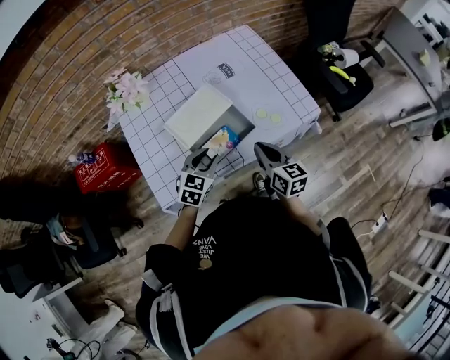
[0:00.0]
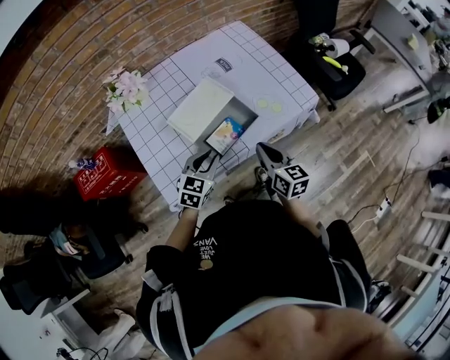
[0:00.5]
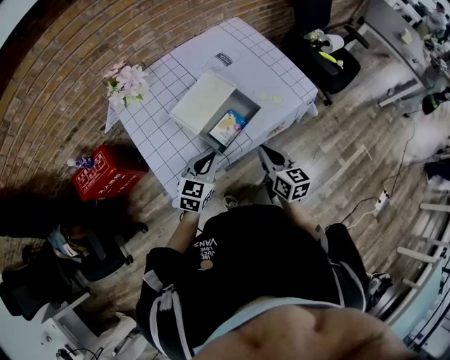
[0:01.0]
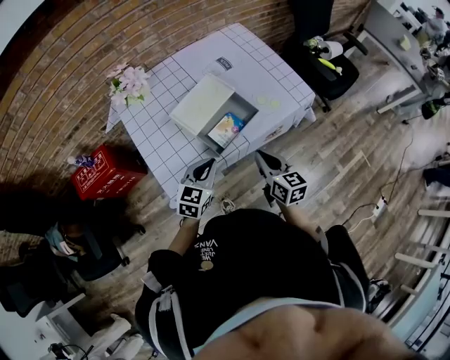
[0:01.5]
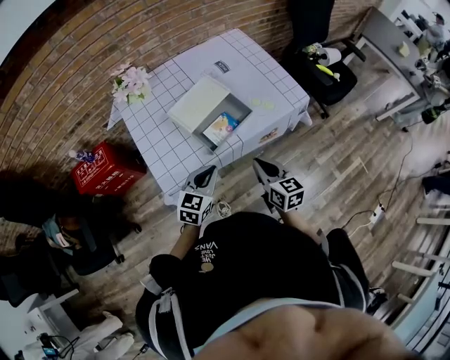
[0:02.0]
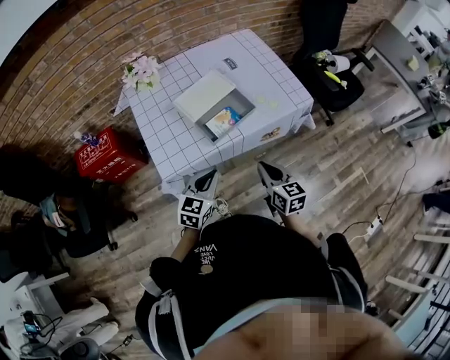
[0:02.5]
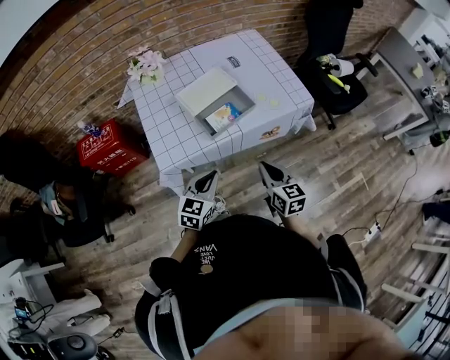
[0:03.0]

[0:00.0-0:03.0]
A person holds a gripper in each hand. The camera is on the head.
0:00.0 to 0:01.5: Both grippers travel together backward, some 10 cm. The left gripper closes up.
0:01.5 to 0:03.0: The right gripper shifts roughly 10 cm backward and to the right; the left gripper heads backward, covering roughly 15 cm.

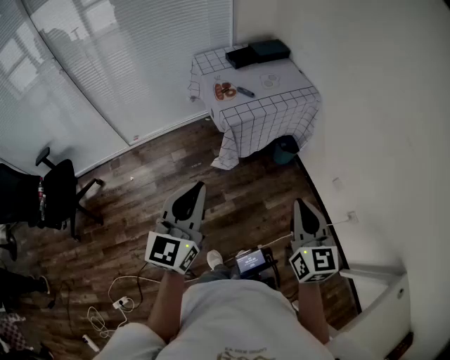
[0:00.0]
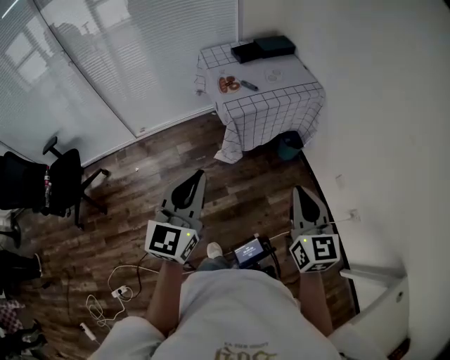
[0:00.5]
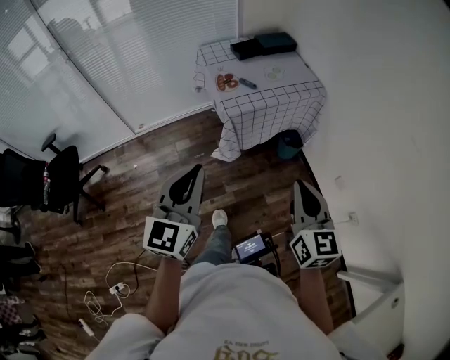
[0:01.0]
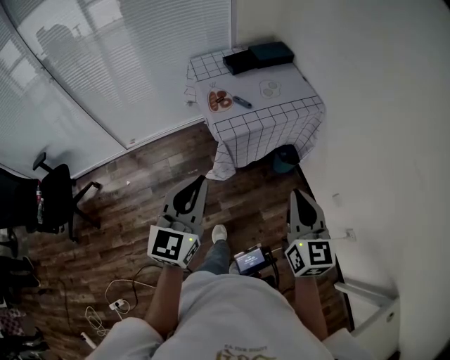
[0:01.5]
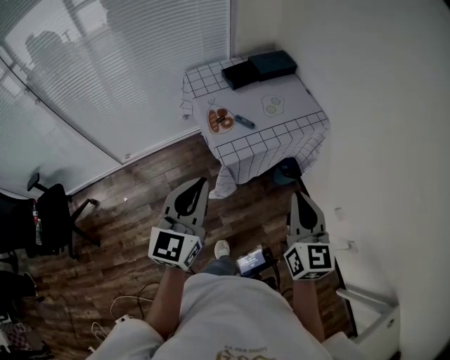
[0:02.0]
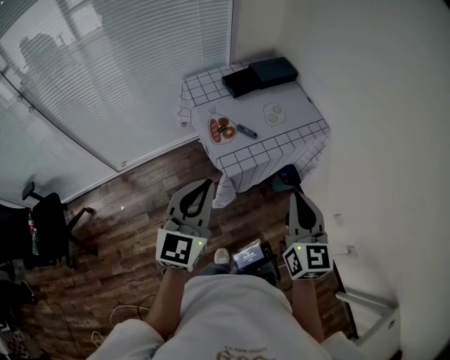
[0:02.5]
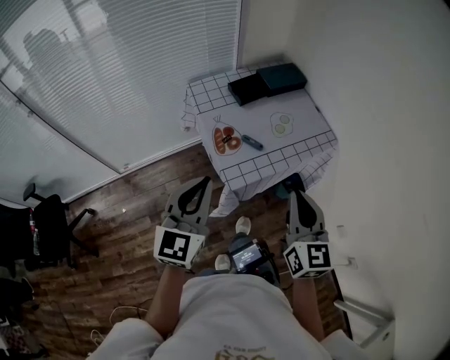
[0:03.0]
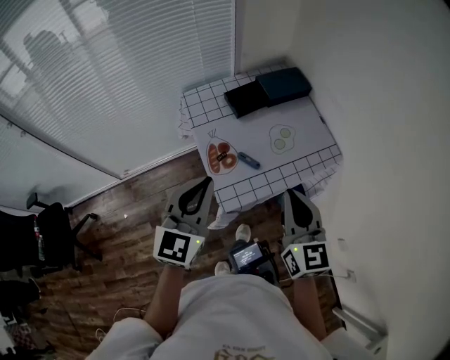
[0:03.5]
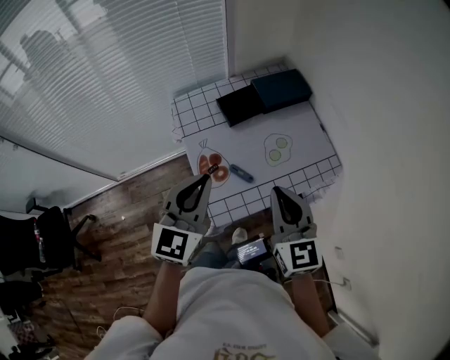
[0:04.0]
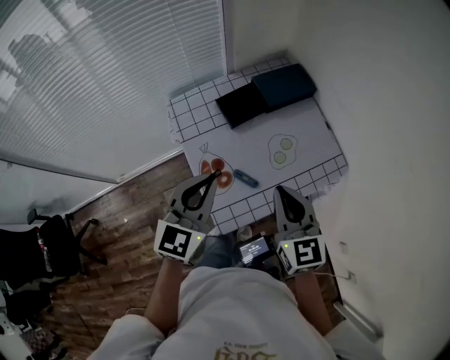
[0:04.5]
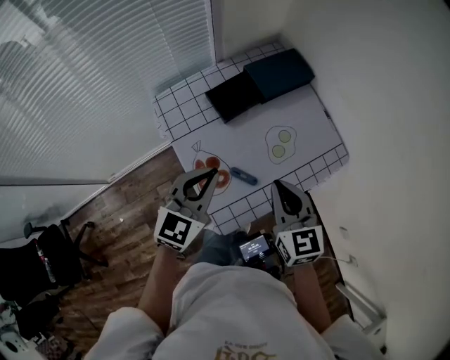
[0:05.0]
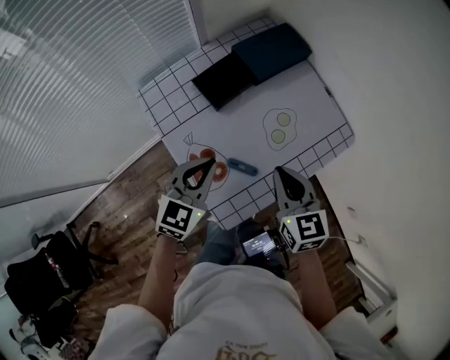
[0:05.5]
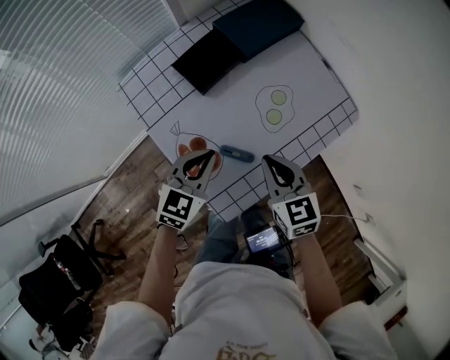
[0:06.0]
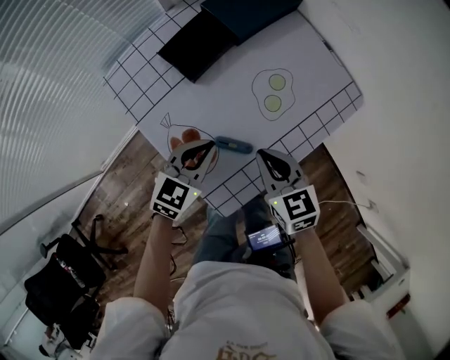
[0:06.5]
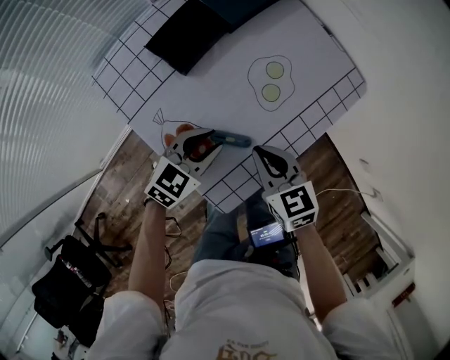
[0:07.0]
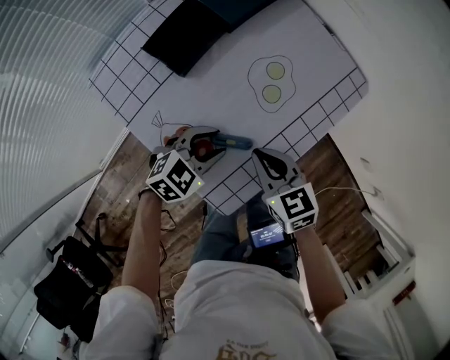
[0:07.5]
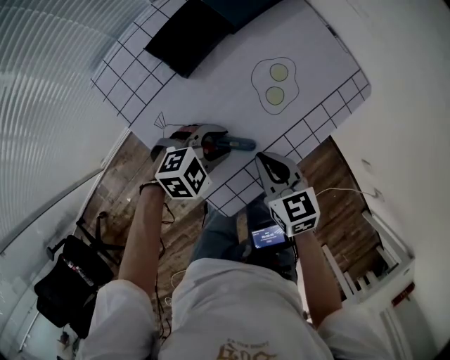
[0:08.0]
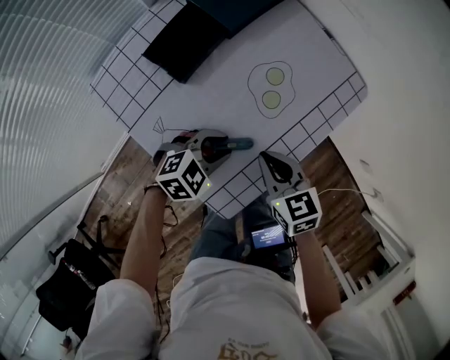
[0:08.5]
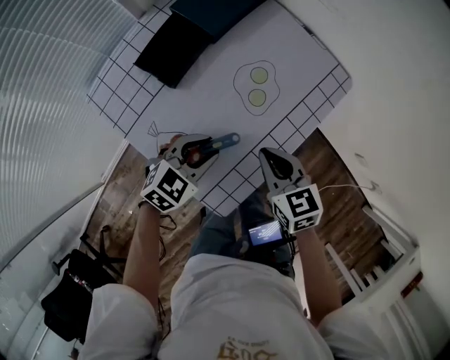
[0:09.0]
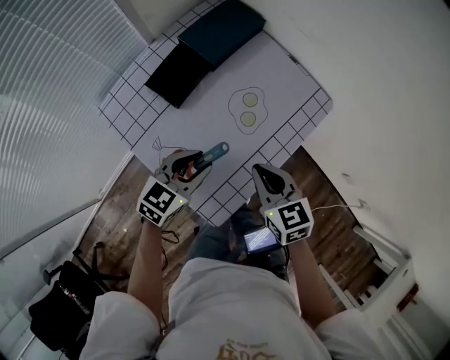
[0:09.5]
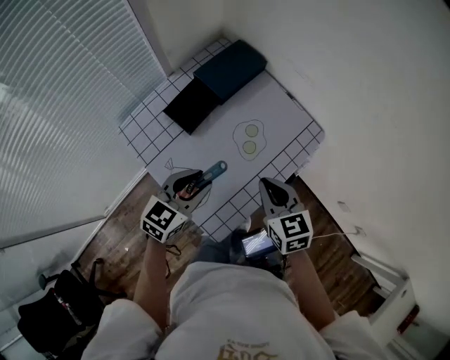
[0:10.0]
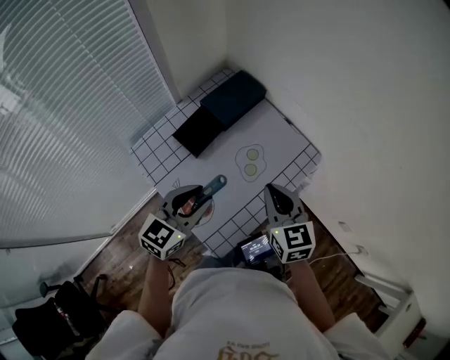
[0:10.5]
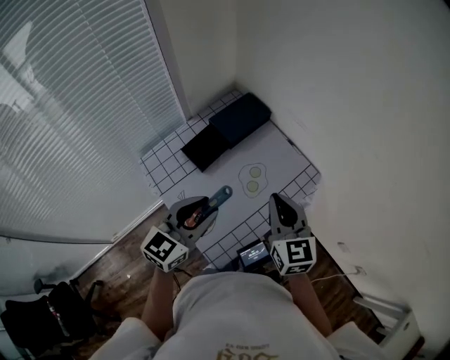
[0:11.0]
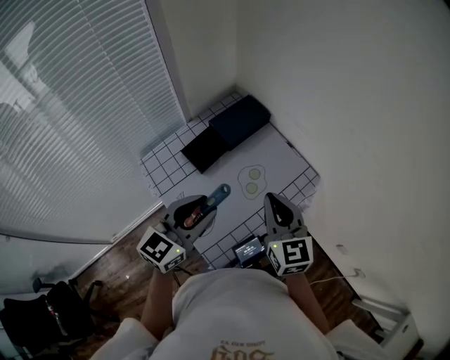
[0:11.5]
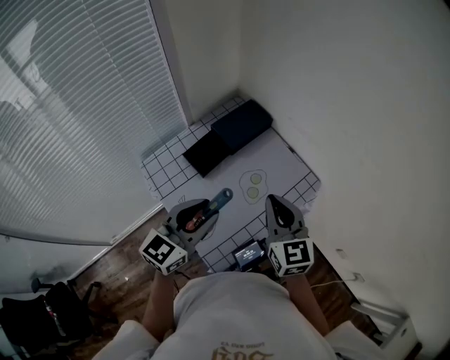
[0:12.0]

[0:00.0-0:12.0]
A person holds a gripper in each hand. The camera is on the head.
0:00.0 to 0:02.0: The grippers both shift forward by approximately 25 cm.
0:02.0 to 0:04.0: Both grippers move forward, about 30 cm.
0:04.0 to 0:06.0: The two grippers go roughly 25 cm downward and forward. The left gripper swivels approximately 40 degrees. Meanwhile the right gripper rotates about 20 degrees.
0:06.0 to 0:08.0: The right gripper shifts roughly 5 cm downward. Meanwhile the left gripper heads downward and to the right, covering some 10 cm, changes its angle by some 50 degrees, and opens.
0:08.0 to 0:10.0: Both grippers travel together upward, some 15 cm. The left gripper changes its angle by roughly 40 degrees.
0:10.0 to 0:12.0: Both grippers travel together upward, roughly 15 cm. The right gripper swivels some 20 degrees.

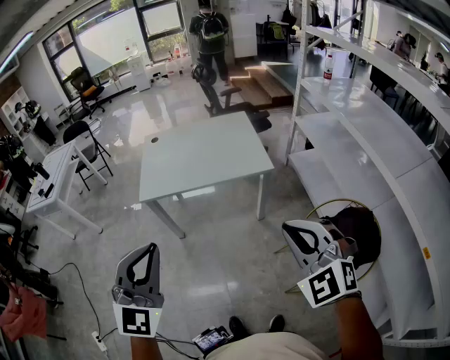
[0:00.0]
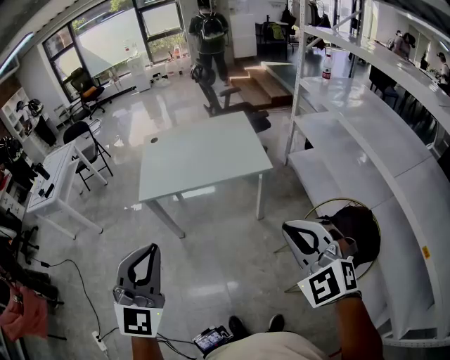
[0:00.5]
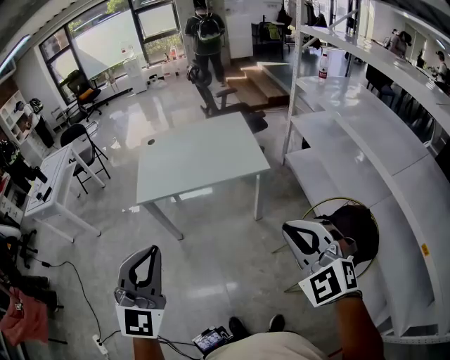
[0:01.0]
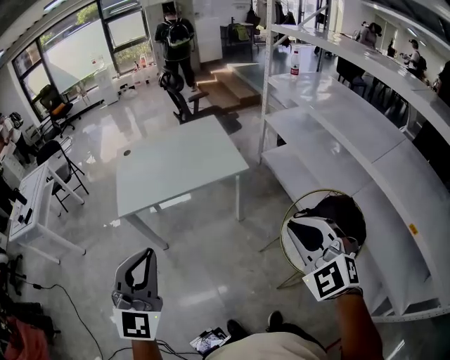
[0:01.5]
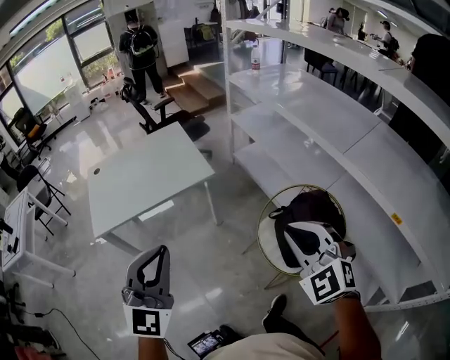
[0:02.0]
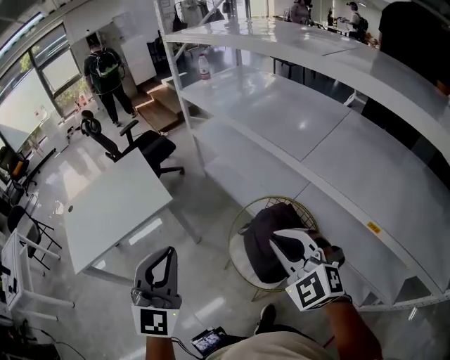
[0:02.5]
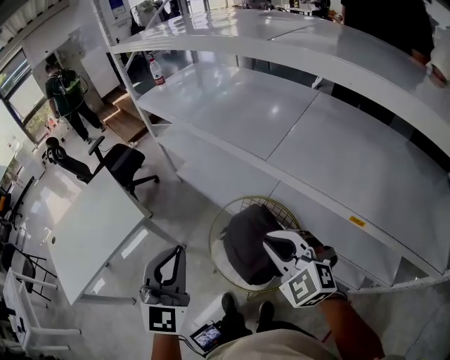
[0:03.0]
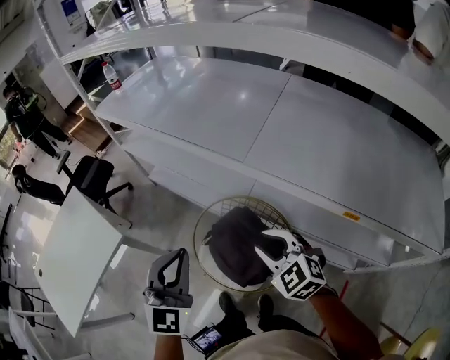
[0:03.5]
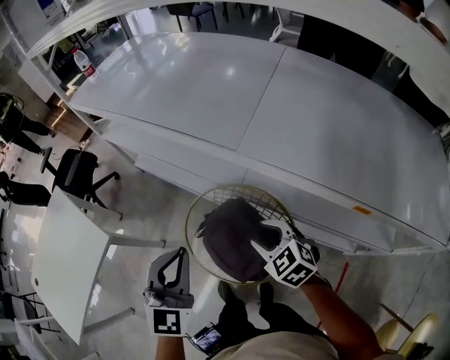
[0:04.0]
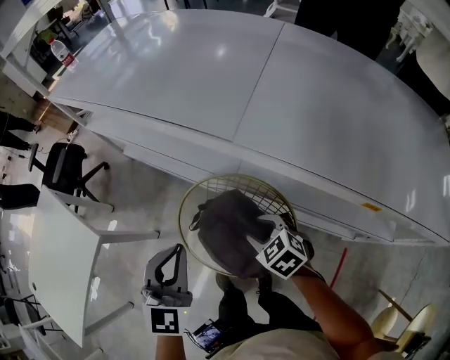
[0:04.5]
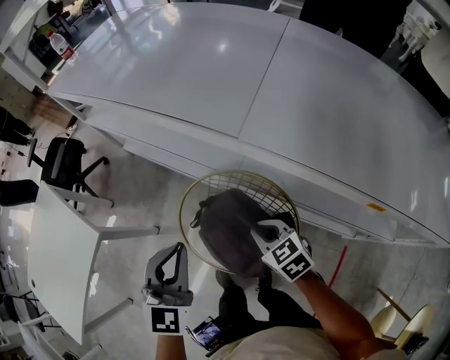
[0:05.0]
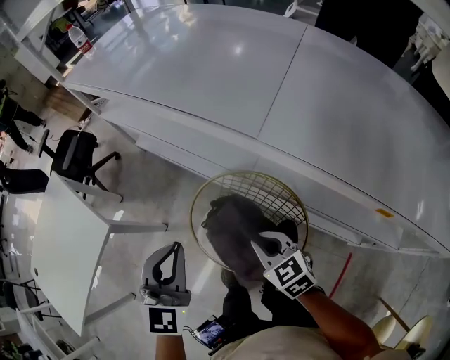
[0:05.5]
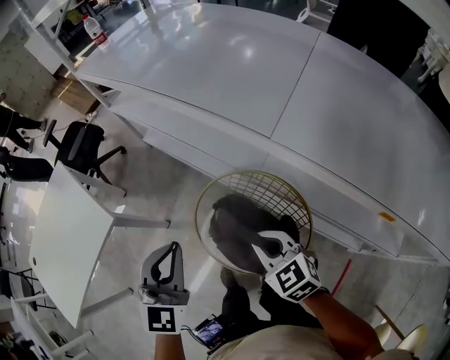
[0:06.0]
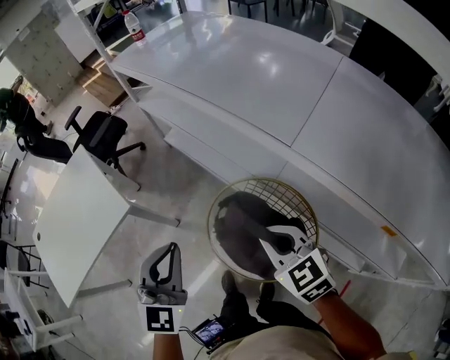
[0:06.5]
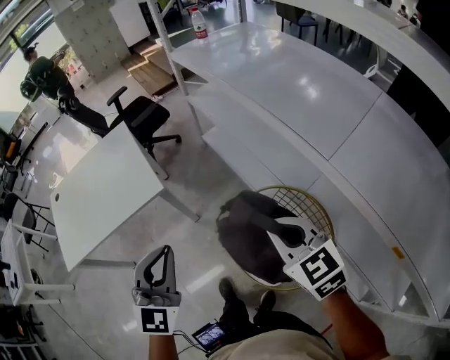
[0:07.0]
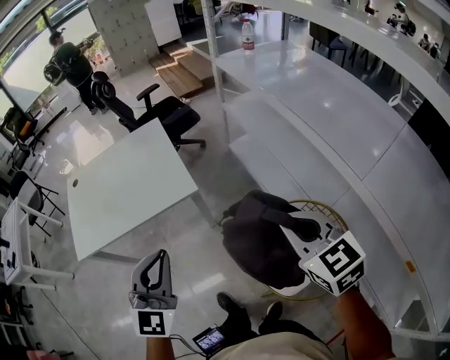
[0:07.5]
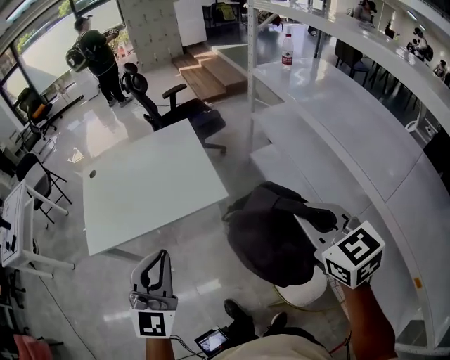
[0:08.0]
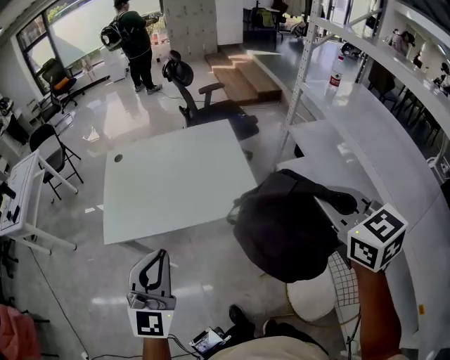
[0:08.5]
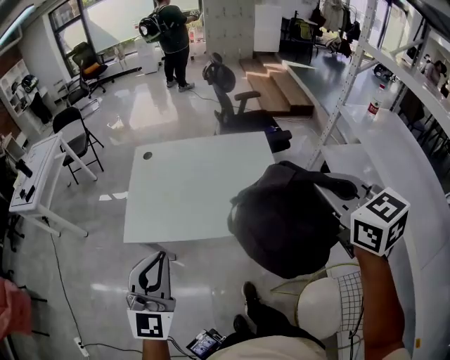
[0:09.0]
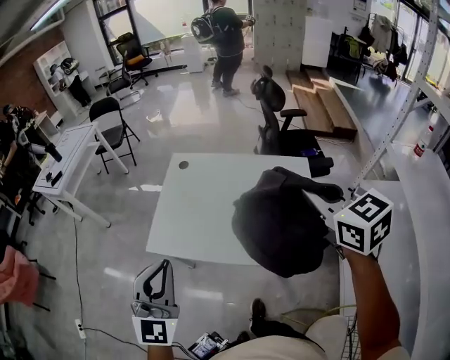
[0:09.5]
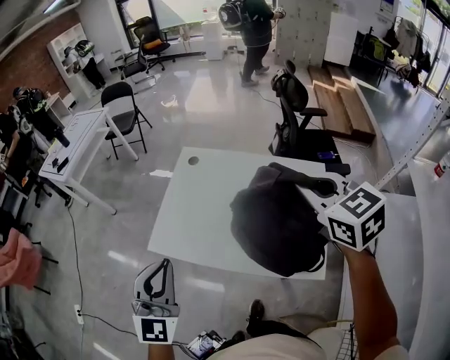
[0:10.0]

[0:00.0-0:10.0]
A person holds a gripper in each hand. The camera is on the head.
0:00.0 to 0:02.0: Both grippers move to the right, some 15 cm. The right gripper swivels some 20 degrees. Meanwhile the left gripper rotates approximately 20 degrees.
0:02.0 to 0:04.0: The left gripper travels to the right, forward and downward by some 50 cm, and turns by approximately 40 degrees. Meanwhile the right gripper travels to the right, downward and forward by some 40 cm, rotates around the line of its fingers by some 40 degrees, clockwise from behind, and opens.
0:04.0 to 0:06.0: Both grippers move to the left, some 5 cm. The right gripper goes downward and returns, some 10 cm each way, and closes.
0:06.0 to 0:08.0: The right gripper moves some 40 cm, and changes its angle by about 30 degrees. The left gripper shifts by about 40 cm, and swivels about 40 degrees.
0:08.0 to 0:10.0: The right gripper moves approximately 50 cm, and changes its angle by about 40 degrees. Meanwhile the left gripper shifts by approximately 35 cm, and swivels roughly 40 degrees.

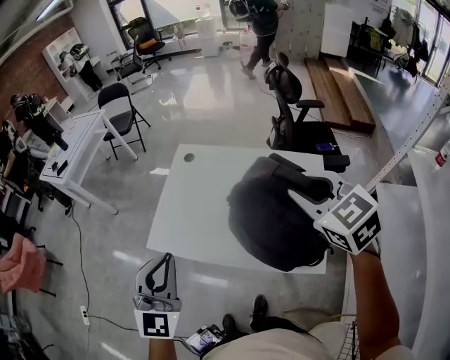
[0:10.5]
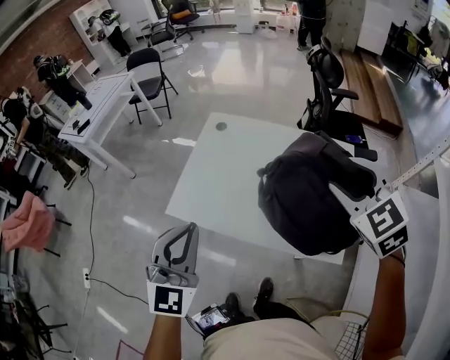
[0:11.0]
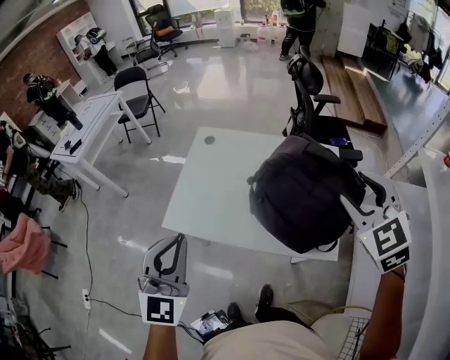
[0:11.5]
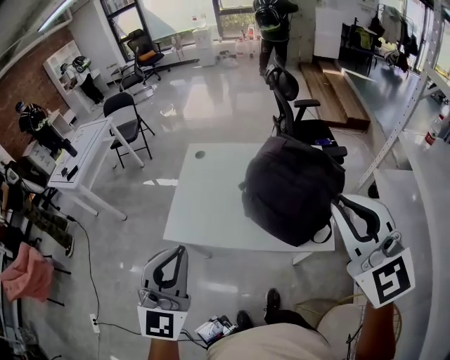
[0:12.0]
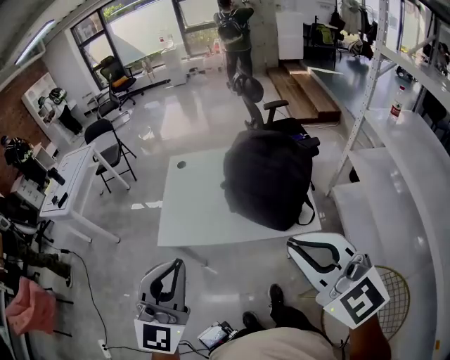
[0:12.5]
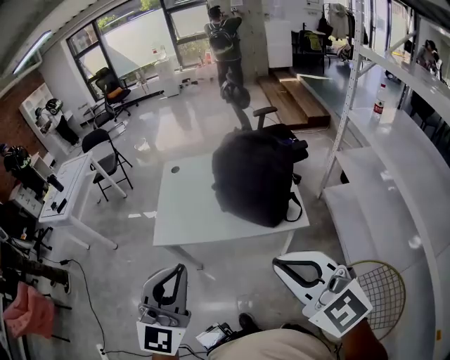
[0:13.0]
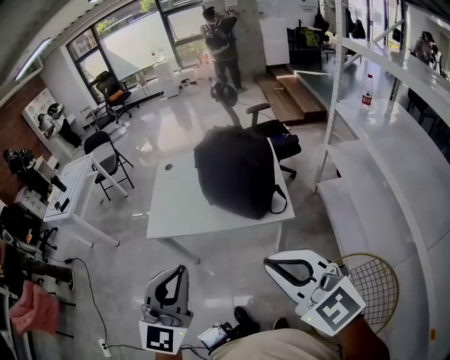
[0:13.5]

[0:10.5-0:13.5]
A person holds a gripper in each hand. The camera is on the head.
0:10.5 to 0:12.0: The right gripper shifts roughly 20 cm backward and upward, rotates about 30 degrees, and opens, then closes again; the left gripper heads upward and backward, covering some 10 cm.
0:12.0 to 0:13.5: The left gripper travels backward and to the right by approximately 25 cm, while the right gripper heads backward, covering about 25 cm.
